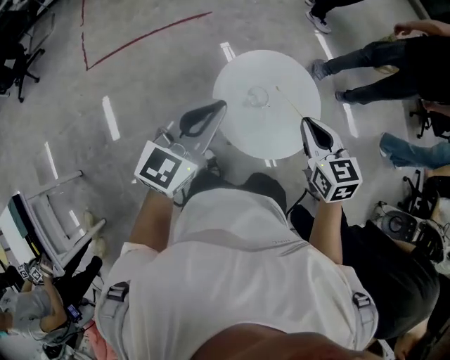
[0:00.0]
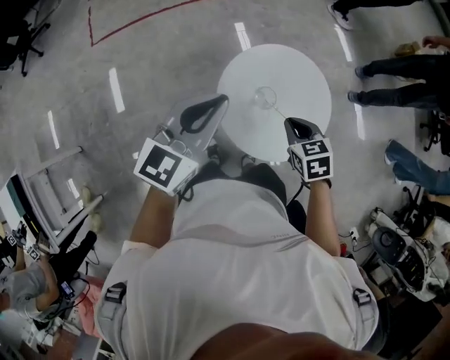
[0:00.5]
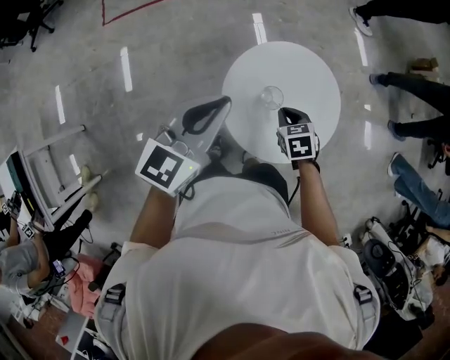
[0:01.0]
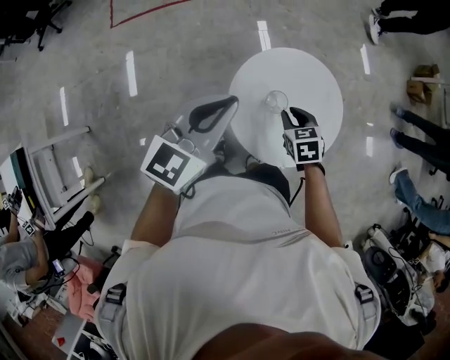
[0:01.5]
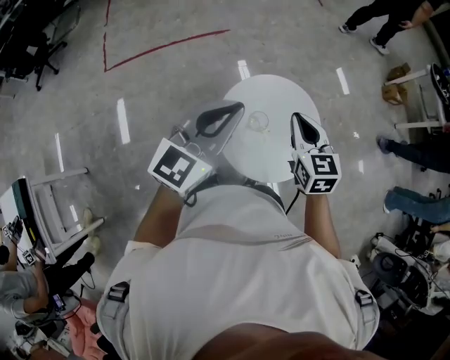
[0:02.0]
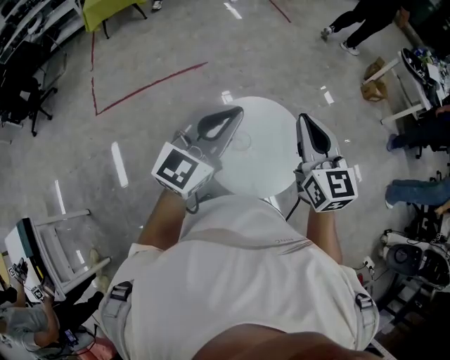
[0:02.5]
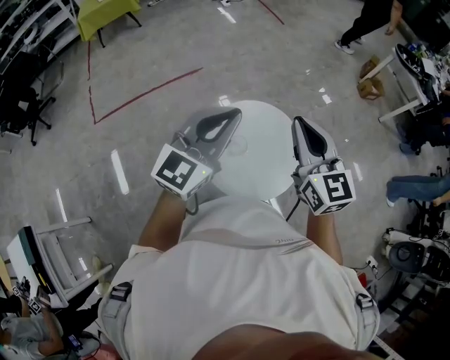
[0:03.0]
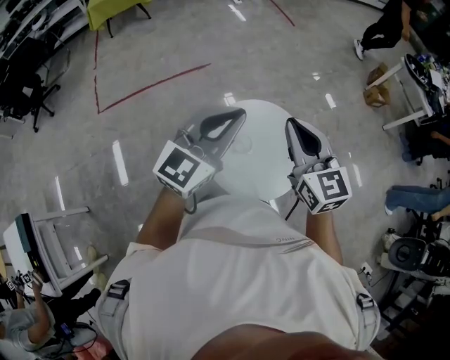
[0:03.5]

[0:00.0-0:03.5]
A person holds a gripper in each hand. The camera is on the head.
0:00.0 to 0:02.0: The right gripper goes roughly 10 cm forward, and reaches approximately 25 cm downward, then returns; the left gripper goes some 10 cm forward and to the right.
0:02.0 to 0:03.5: The right gripper heads upward and to the right, covering about 15 cm; the left gripper moves to the right, some 10 cm.

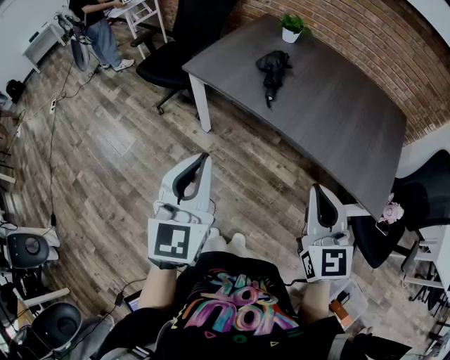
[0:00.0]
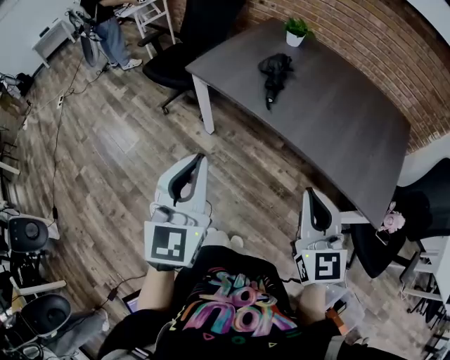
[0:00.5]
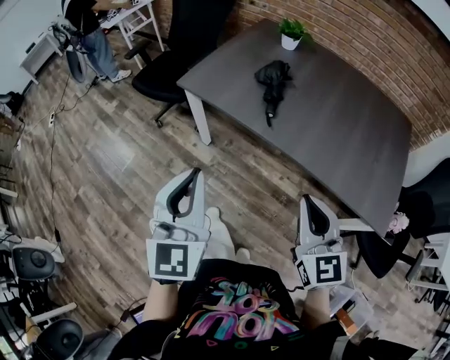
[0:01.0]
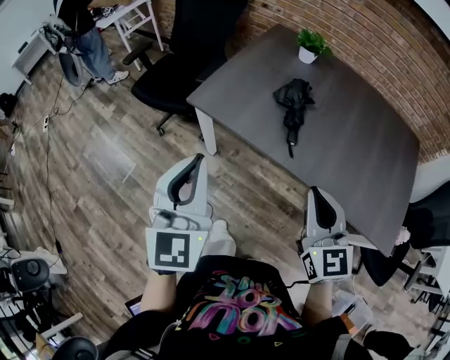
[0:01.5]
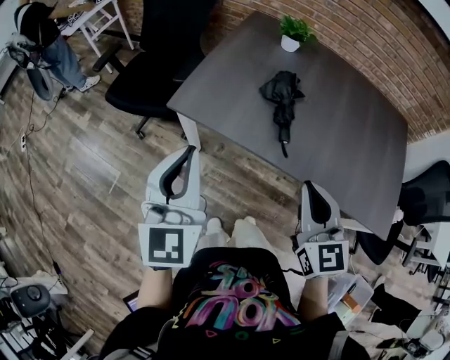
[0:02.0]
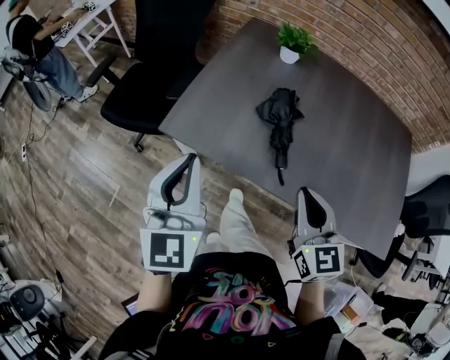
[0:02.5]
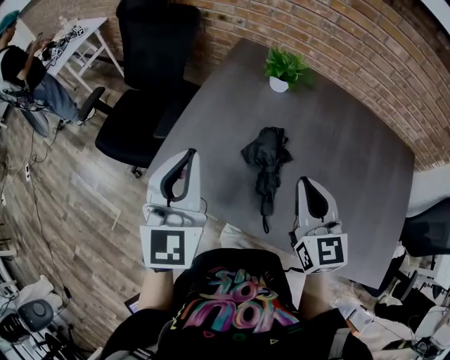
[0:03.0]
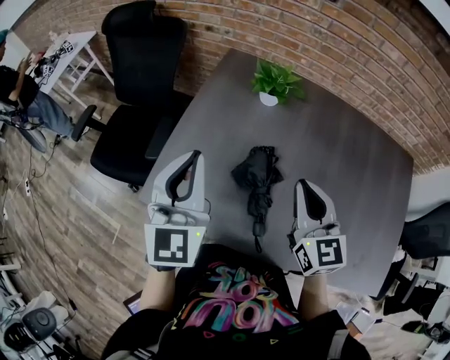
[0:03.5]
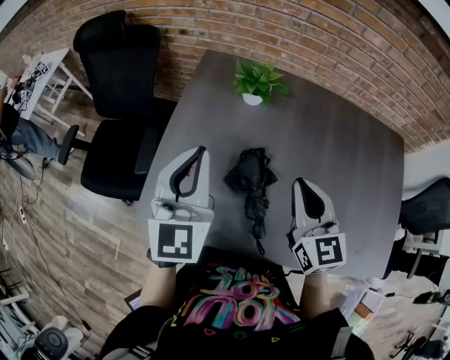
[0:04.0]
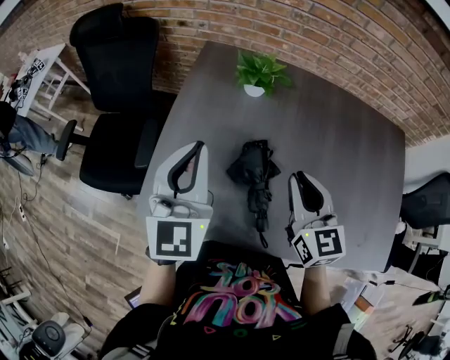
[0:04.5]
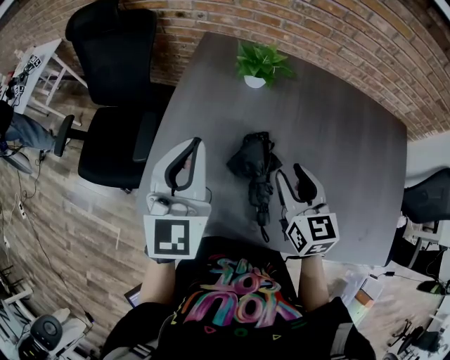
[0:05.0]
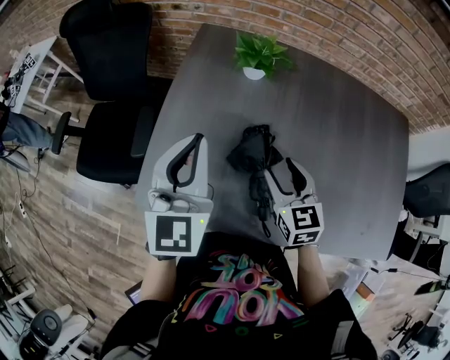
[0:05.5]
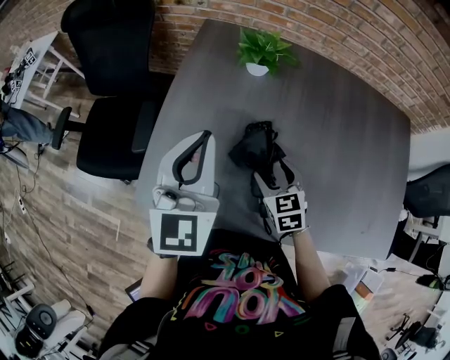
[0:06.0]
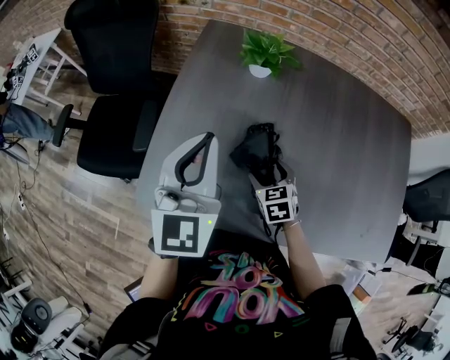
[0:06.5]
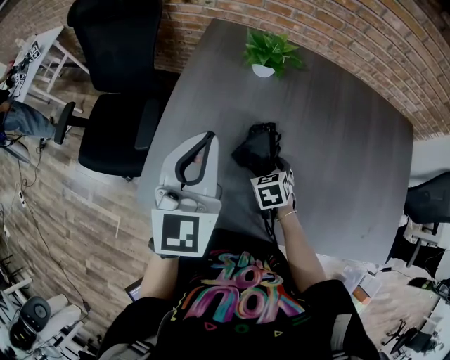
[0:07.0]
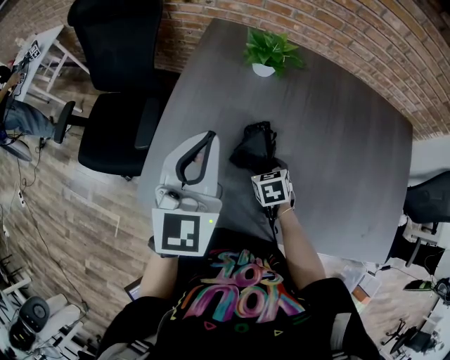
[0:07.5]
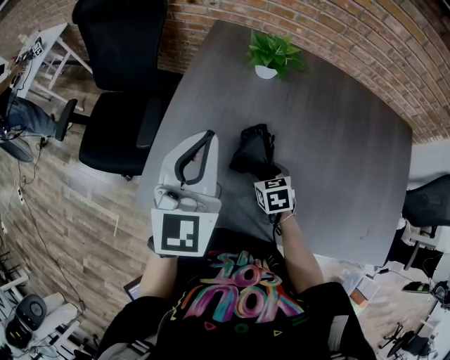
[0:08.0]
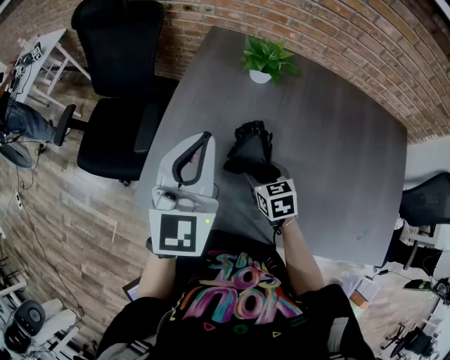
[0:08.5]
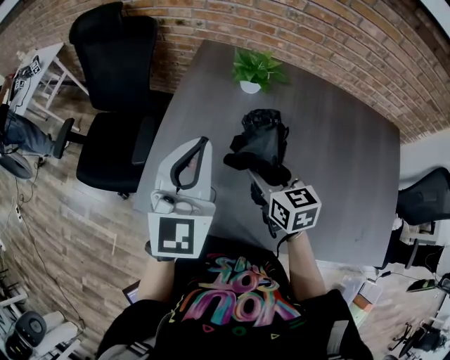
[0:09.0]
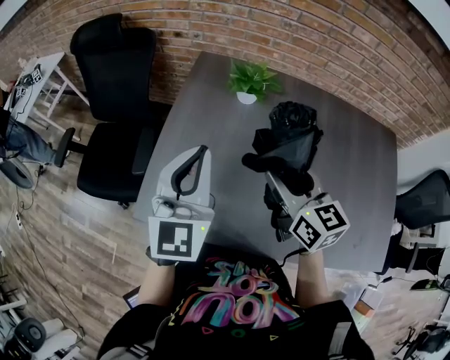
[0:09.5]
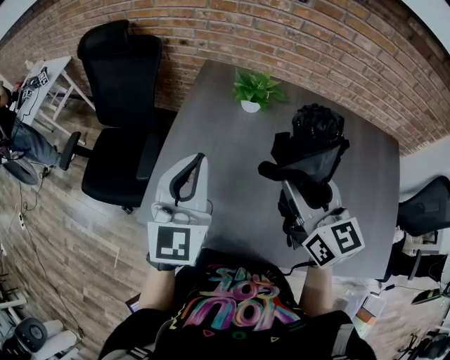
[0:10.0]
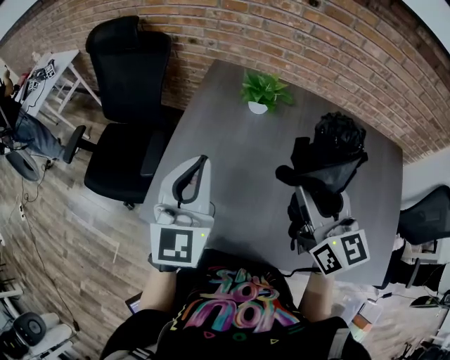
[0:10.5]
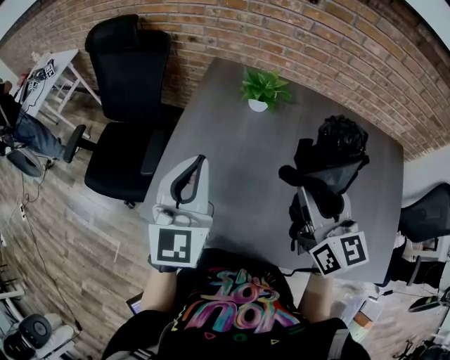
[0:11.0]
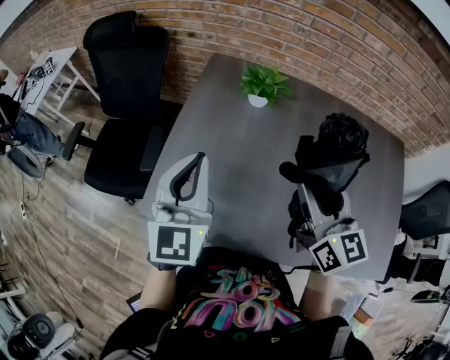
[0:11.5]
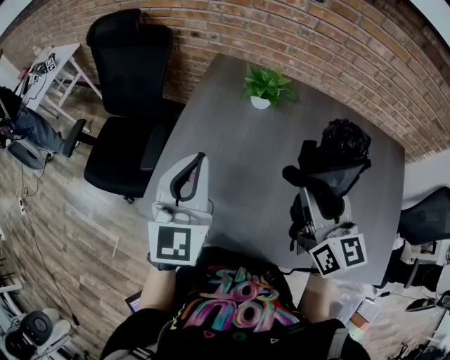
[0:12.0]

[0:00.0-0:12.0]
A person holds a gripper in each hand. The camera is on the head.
0:00.0 to 0:02.0: The left gripper moves forward, roughly 30 cm; the right gripper goes roughly 25 cm forward and to the left.
0:02.0 to 0:04.0: Both grippers move forward, roughly 35 cm.
0:04.0 to 0:06.0: The right gripper is displaced downward by some 20 cm, turns by approximately 30 degrees, and opens its fingers.
0:06.0 to 0:08.0: The right gripper moves downward, approximately 5 cm.
0:08.0 to 0:10.0: The right gripper travels upward by approximately 35 cm, and angles its fingers upward, by about 50 degrees.
0:10.0 to 0:12.0: The grippers make only small movements.

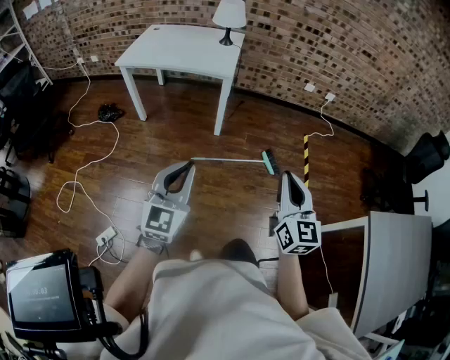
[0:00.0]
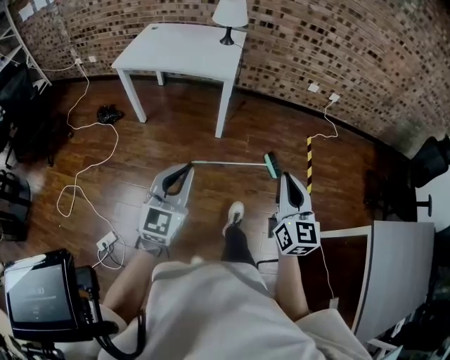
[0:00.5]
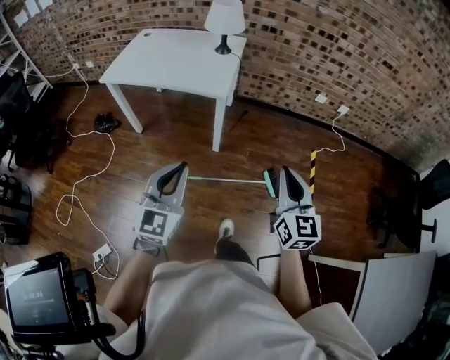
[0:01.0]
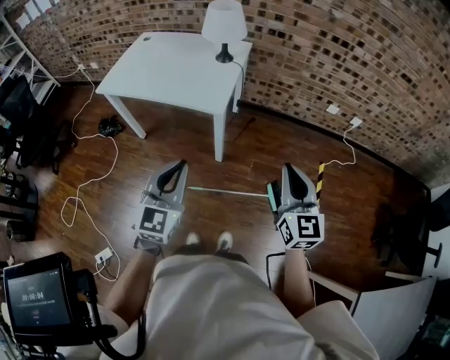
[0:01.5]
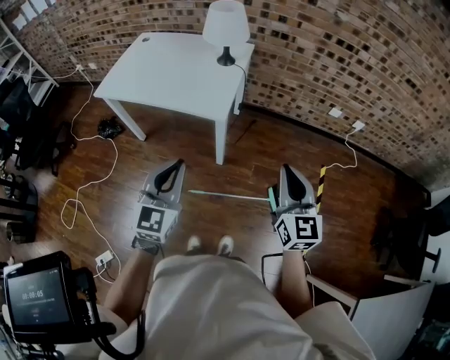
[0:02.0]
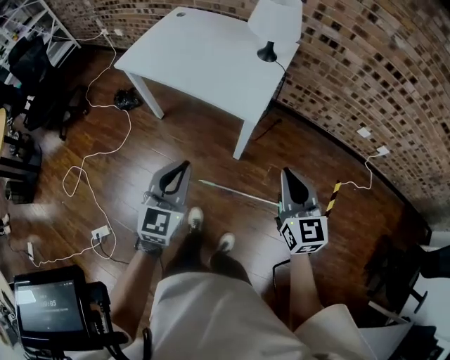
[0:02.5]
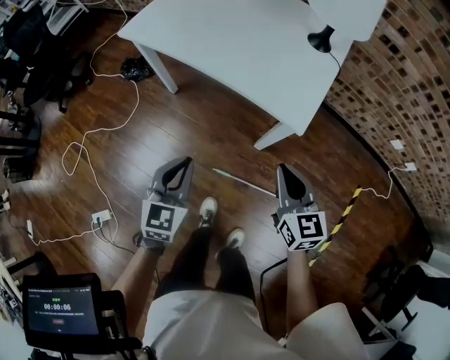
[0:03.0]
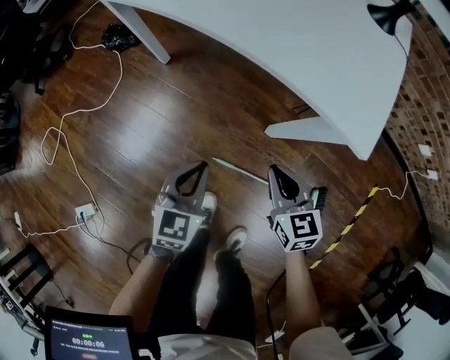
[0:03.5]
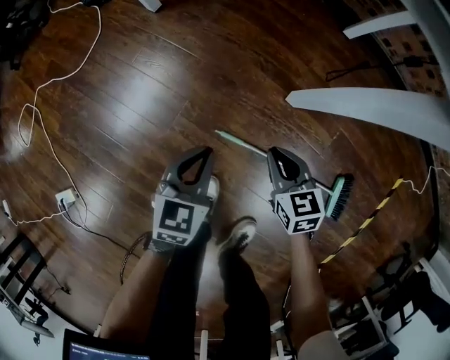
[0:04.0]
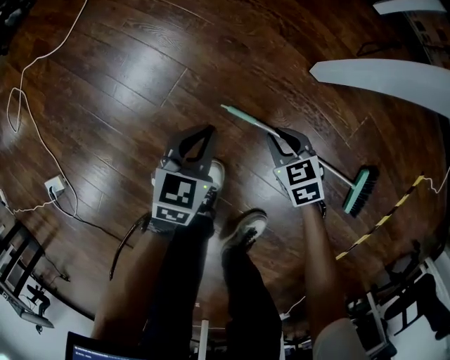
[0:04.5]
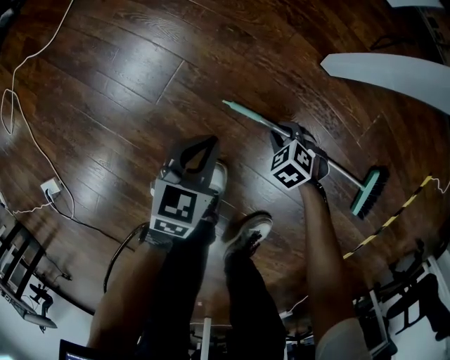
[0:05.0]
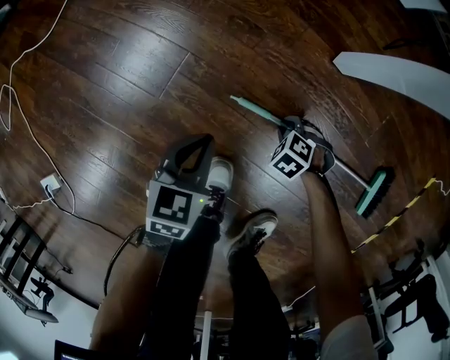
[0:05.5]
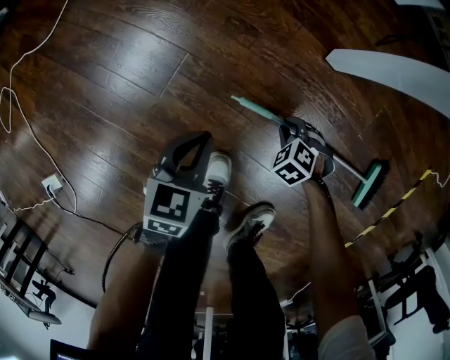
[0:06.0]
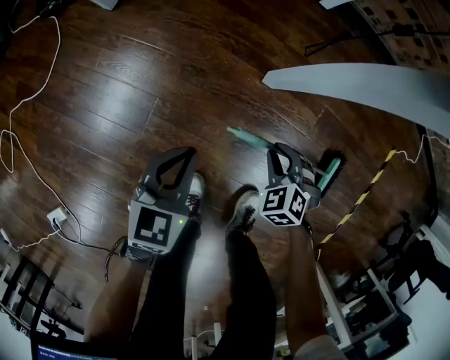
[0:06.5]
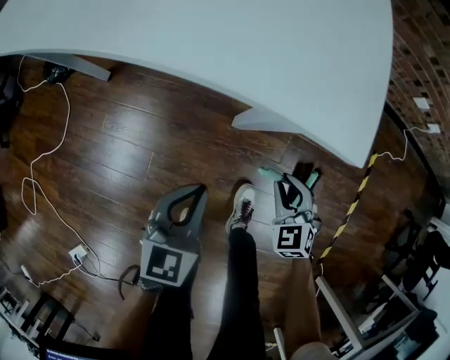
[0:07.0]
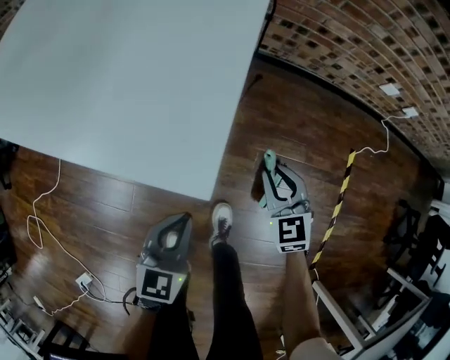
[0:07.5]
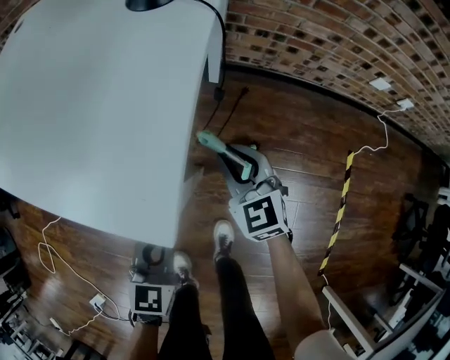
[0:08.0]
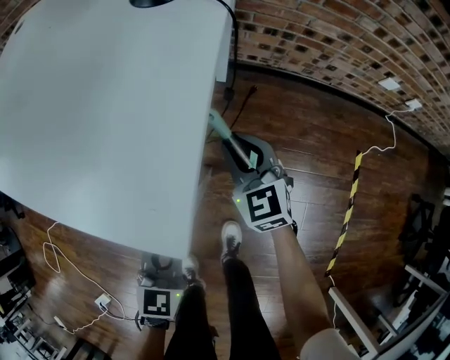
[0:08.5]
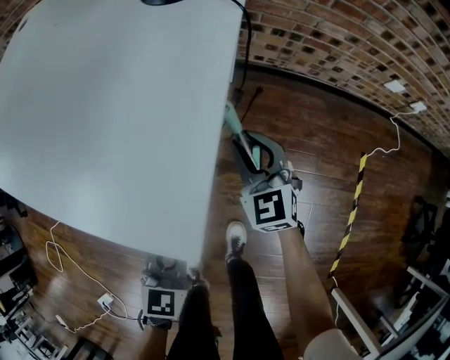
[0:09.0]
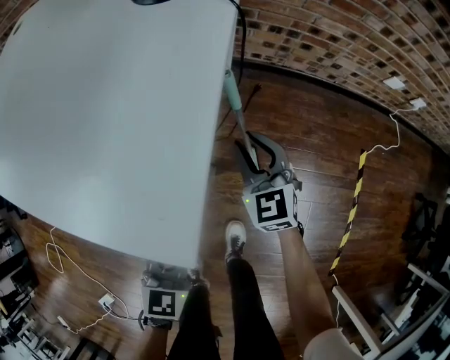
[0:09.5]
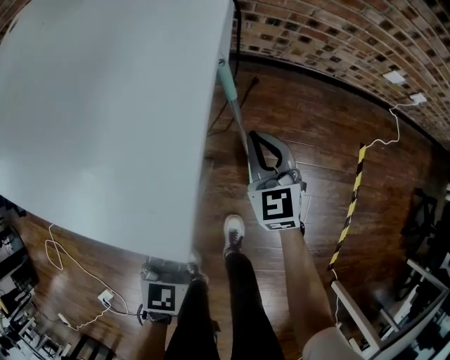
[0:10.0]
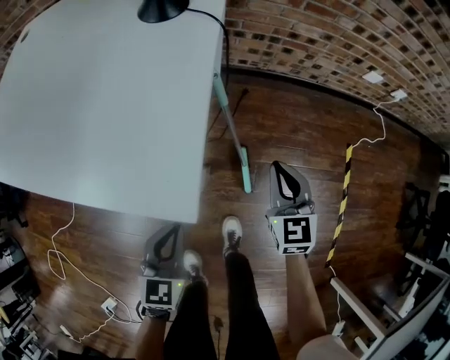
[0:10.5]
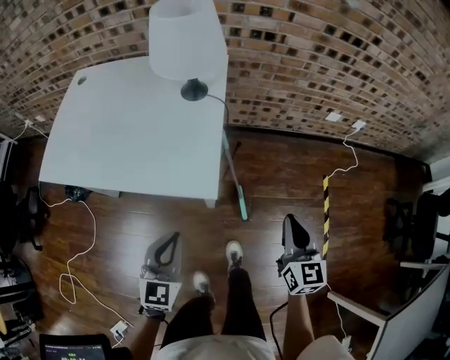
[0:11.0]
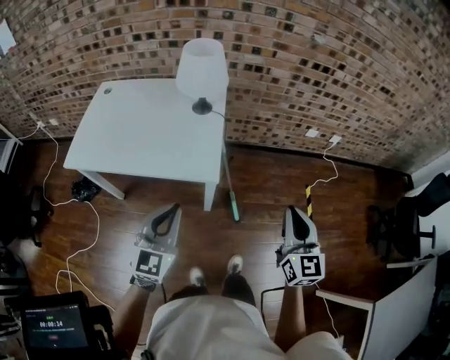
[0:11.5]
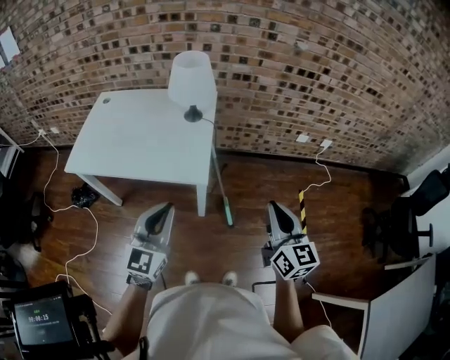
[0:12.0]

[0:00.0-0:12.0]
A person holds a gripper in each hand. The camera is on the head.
0:00.0 to 0:02.0: The two grippers travel together, forward, about 40 cm.
0:02.0 to 0:04.0: The grippers both shift downward by approximately 70 cm. The left gripper angles its fingers downward, by some 30 degrees, while the right gripper tips its fingers downward by some 40 degrees.
0:04.0 to 0:06.0: The right gripper shifts approximately 30 cm downward, and tilts its fingers roughly 40 degrees downward, while the left gripper heads downward, covering some 20 cm.
0:06.0 to 0:08.0: The grippers both shift upward by about 50 cm. The right gripper tilts its fingers approximately 50 degrees upward. Meanwhile the left gripper changes its angle by about 20 degrees.
0:08.0 to 0:10.0: The right gripper changes place by roughly 5 cm.
0:10.0 to 0:12.0: The left gripper moves upward, roughly 50 cm, and tilts its fingers about 40 degrees upward. Meanwhile the right gripper heads upward and backward, covering about 60 cm, and changes its angle by about 40 degrees.
